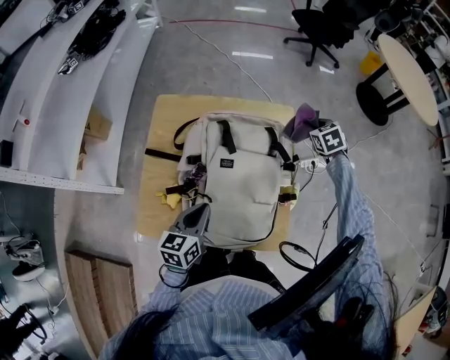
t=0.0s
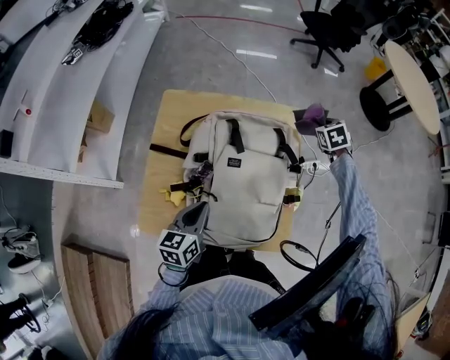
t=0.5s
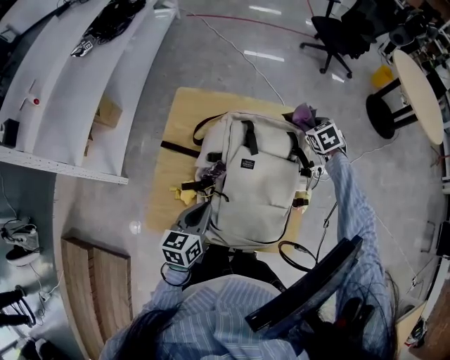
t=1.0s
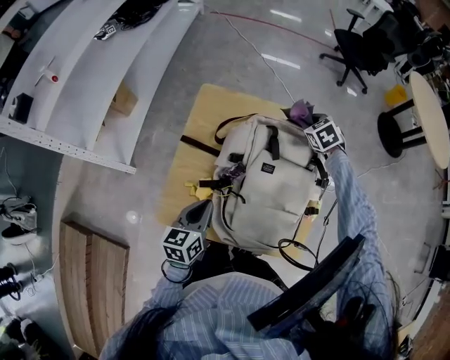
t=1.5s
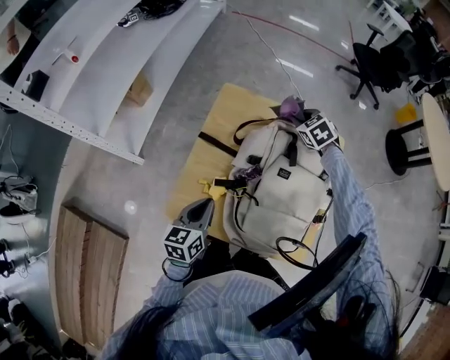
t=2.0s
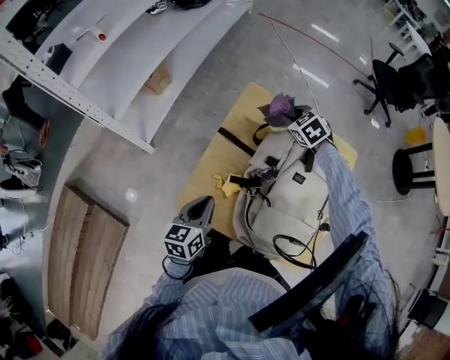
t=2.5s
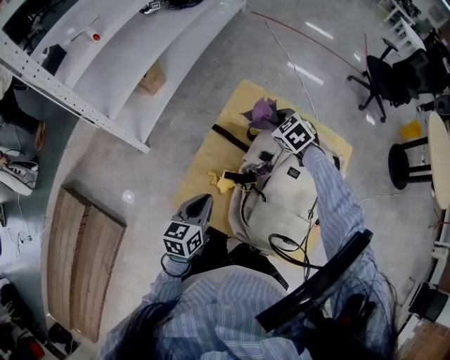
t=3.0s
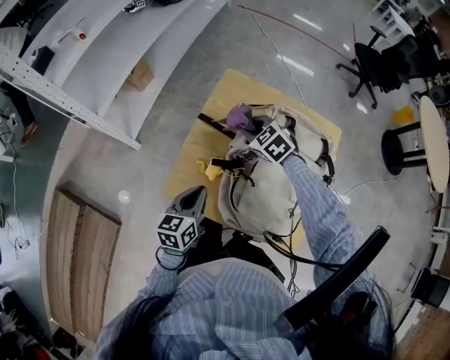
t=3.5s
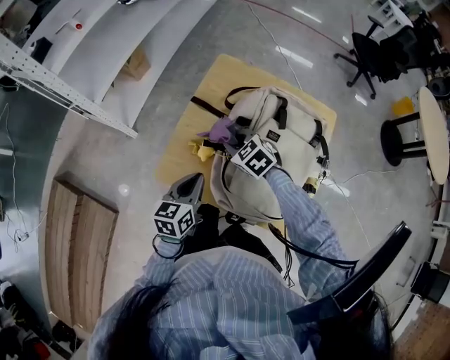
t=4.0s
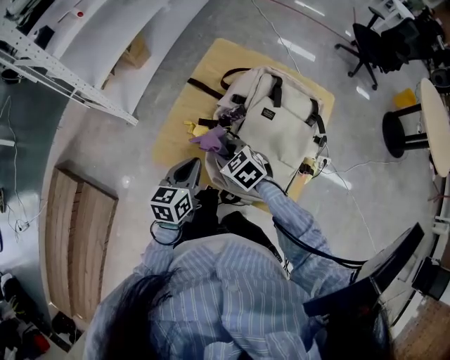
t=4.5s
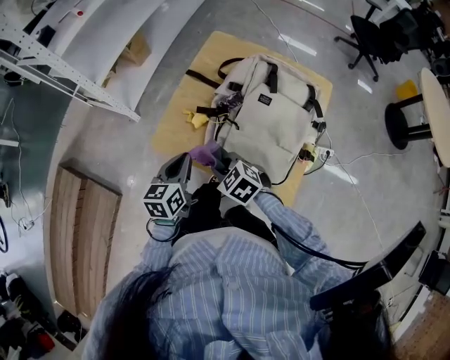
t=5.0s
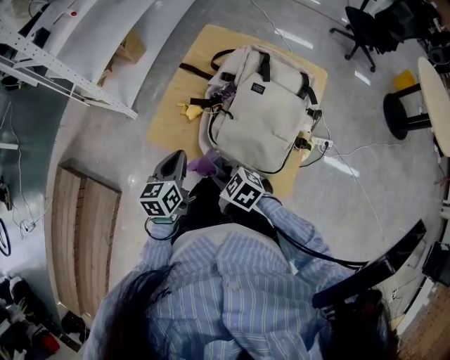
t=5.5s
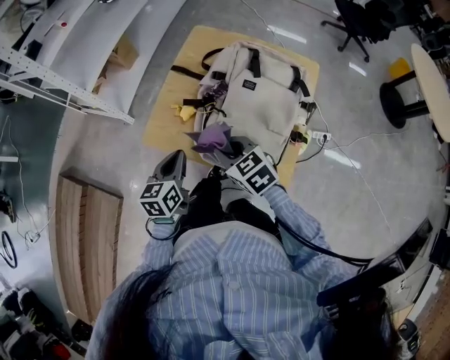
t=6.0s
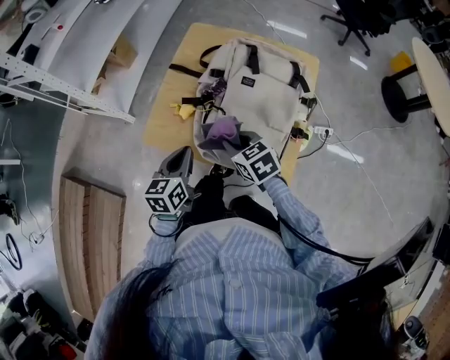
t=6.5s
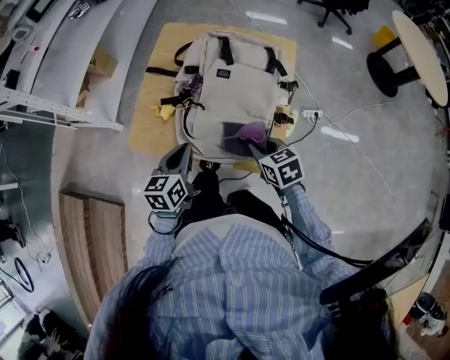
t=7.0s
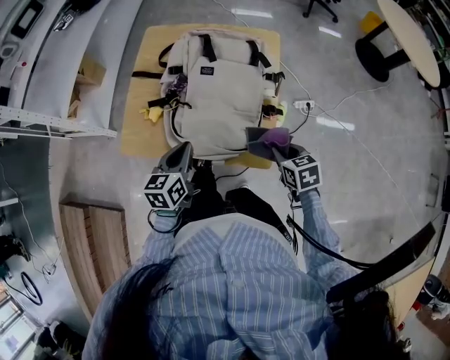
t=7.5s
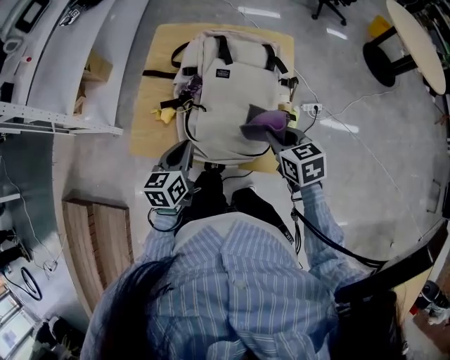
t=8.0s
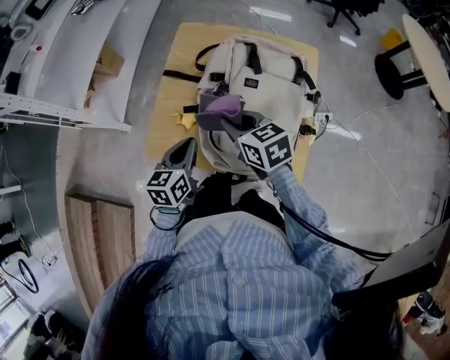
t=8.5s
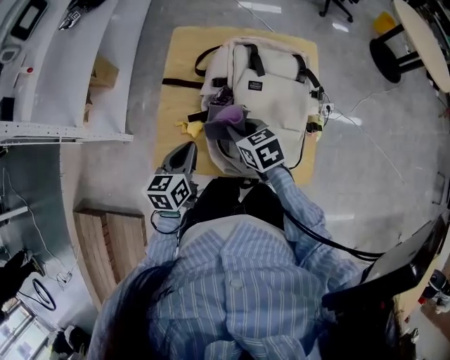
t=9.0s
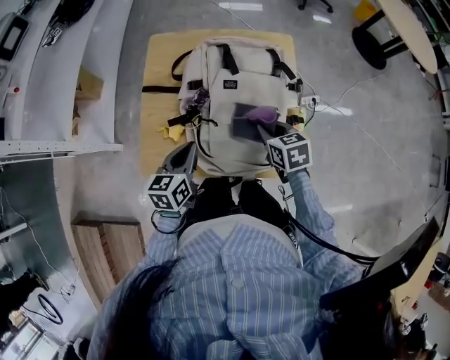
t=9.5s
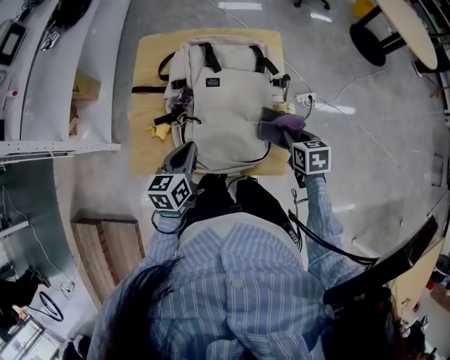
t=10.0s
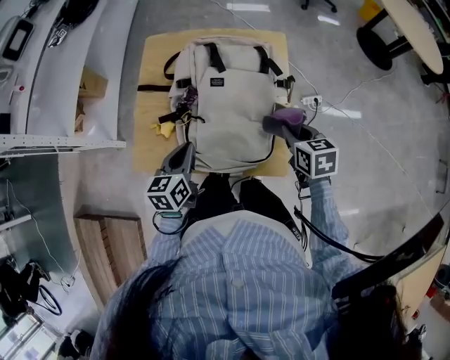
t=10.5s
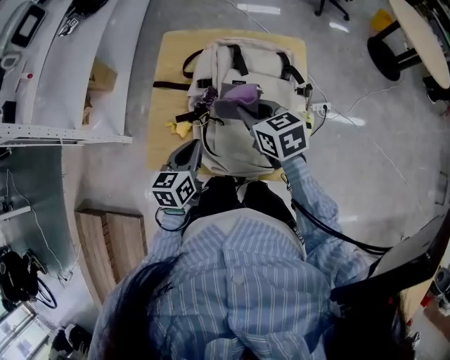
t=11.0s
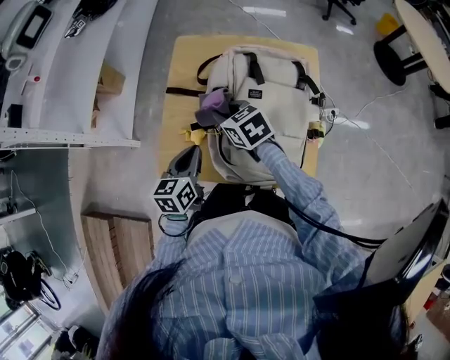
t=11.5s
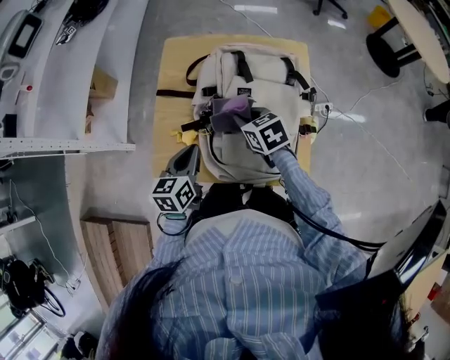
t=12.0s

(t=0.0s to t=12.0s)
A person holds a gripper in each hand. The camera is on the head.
t=0.0s - t=2.0s: The right gripper goes about 30 cm to the left, and rotates roughly 30 degrees. The left gripper travels to the left by about 15 cm.
t=2.0s - t=4.0s: The left gripper moves backward, roughly 5 cm. The right gripper moves backward and to the left, roughly 30 cm, and swivels roughly 20 degrees.
t=4.0s - t=6.0s: The right gripper shifts roughly 20 cm backward, while the left gripper travels backward by about 10 cm.
t=6.0s - t=8.0s: The right gripper travels to the right by roughly 20 cm, and changes its angle by roughly 30 degrees, while the left gripper moves to the right, some 10 cm.
t=8.0s - t=10.0s: The left gripper goes to the left and returns, approximately 10 cm each way, while the right gripper is displaced downward by approximately 5 cm, moves approximately 20 cm to the left and comes back, and turns by roughly 20 degrees.
t=10.0s - t=12.0s: The right gripper shifts about 25 cm to the left and forward, and turns by roughly 20 degrees, while the left gripper is displaced to the left by about 10 cm.

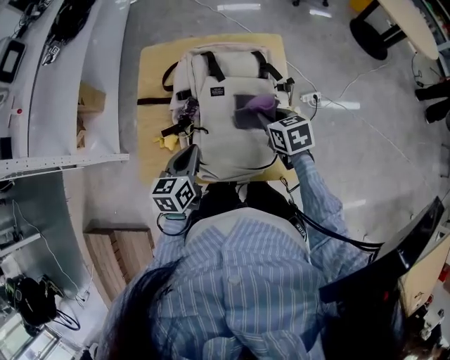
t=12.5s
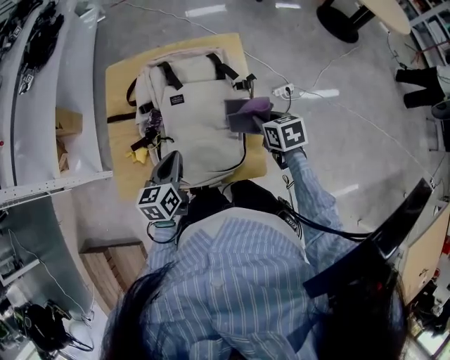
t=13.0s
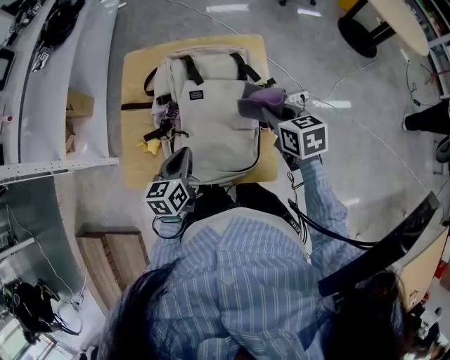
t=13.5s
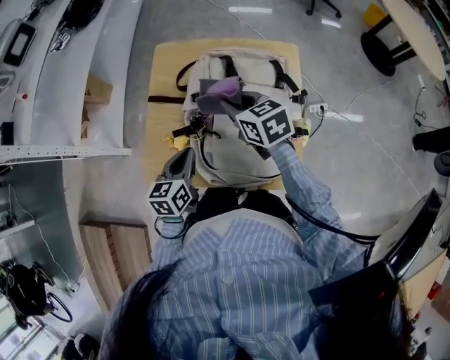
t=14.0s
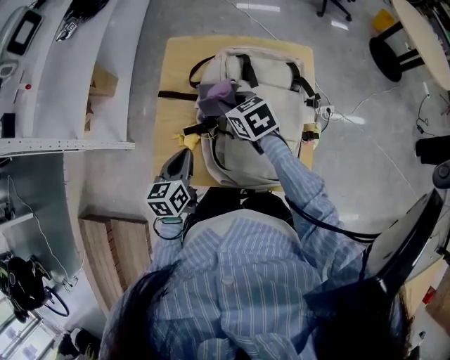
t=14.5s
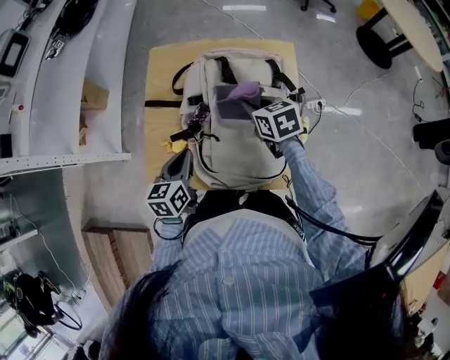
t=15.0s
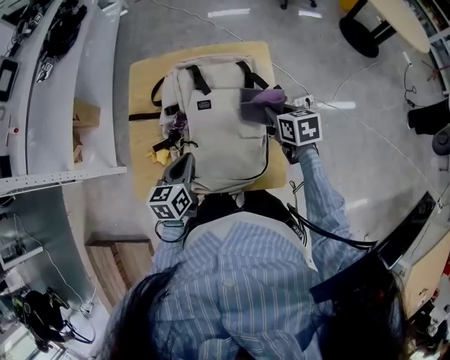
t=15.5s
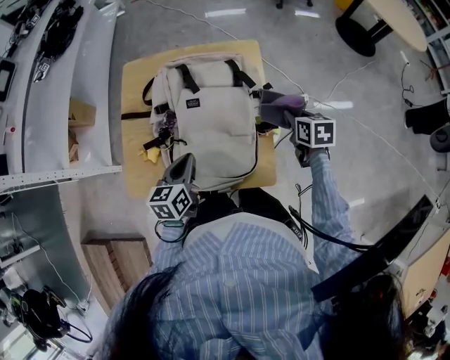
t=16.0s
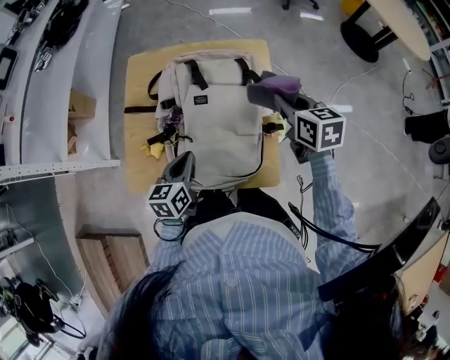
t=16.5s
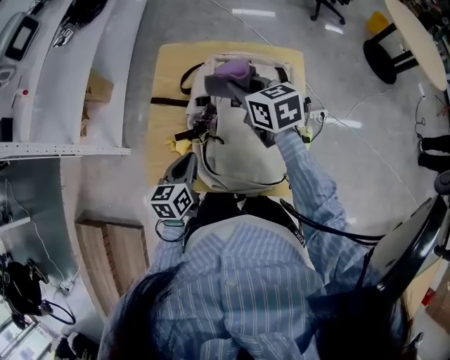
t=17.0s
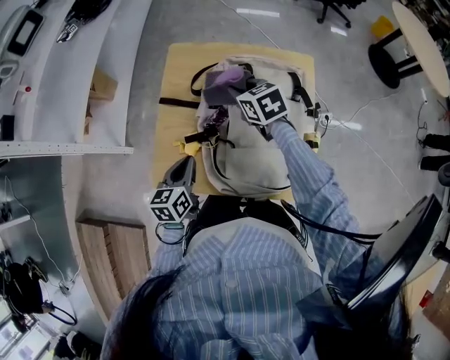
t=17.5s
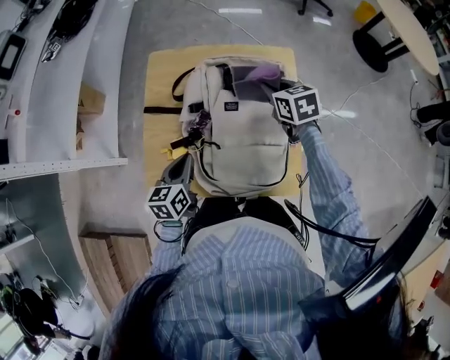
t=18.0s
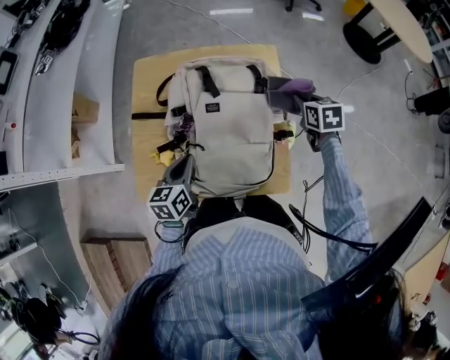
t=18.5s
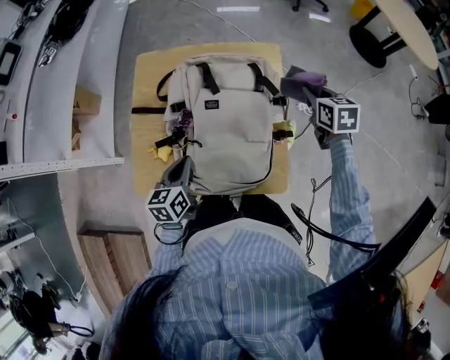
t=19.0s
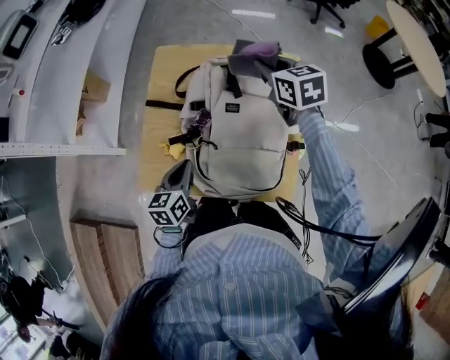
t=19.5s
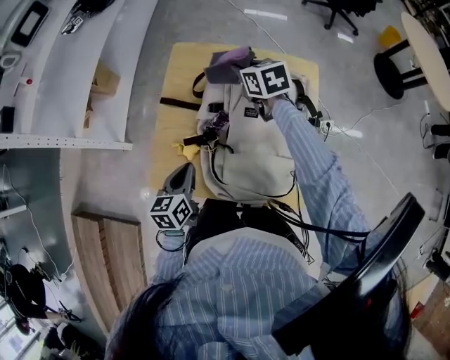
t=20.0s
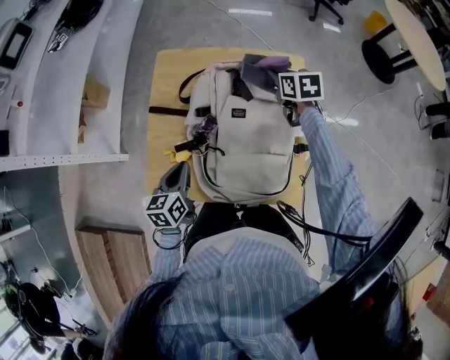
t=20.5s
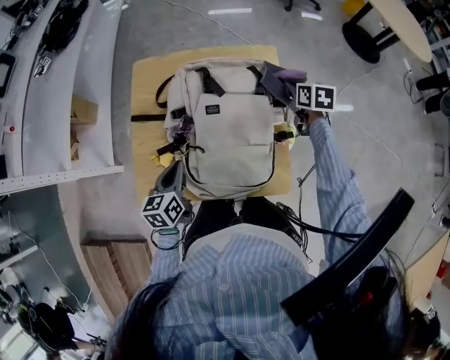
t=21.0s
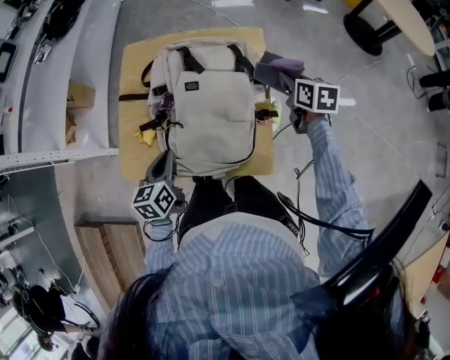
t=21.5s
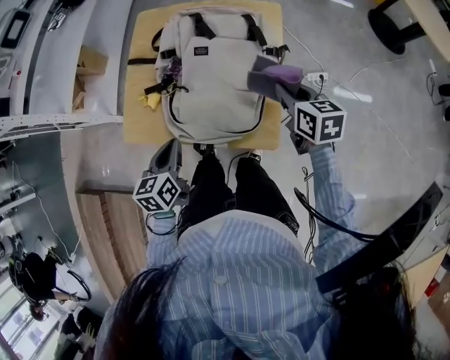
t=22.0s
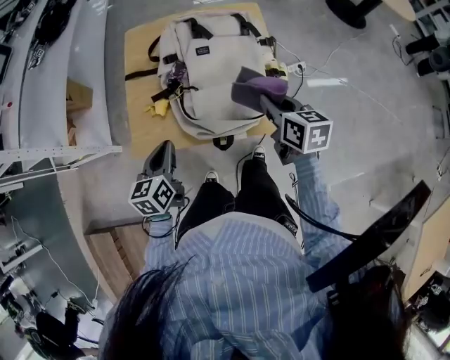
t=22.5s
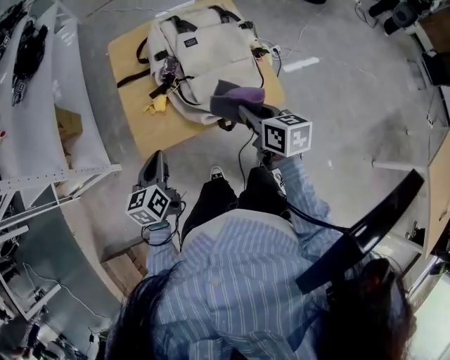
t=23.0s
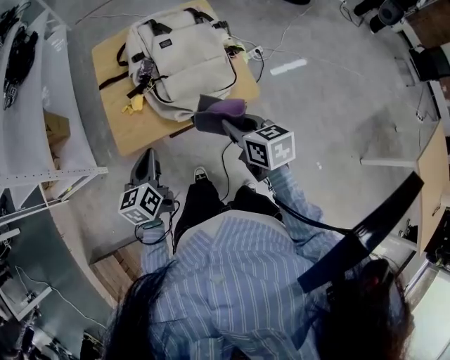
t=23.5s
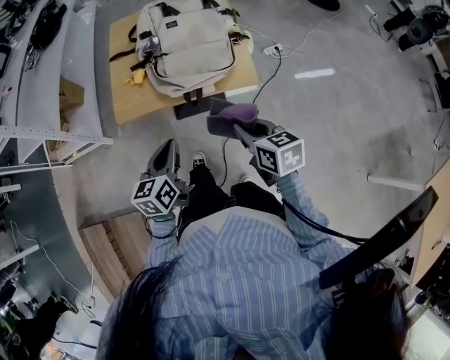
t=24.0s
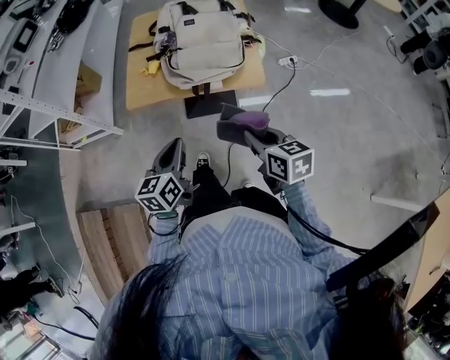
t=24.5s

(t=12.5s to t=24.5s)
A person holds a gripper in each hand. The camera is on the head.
t=12.5s - t=14.5s: The right gripper travels to the left and forward by roughly 20 cm. The left gripper is displaced to the left by about 10 cm.
t=14.5s - t=16.5s: The left gripper shifts about 15 cm to the right. Meanwhile the right gripper travels to the right by roughly 30 cm, and rotates approximately 30 degrees.
t=16.5s - t=18.5s: The left gripper moves about 15 cm to the left and comes back, while the right gripper shifts about 10 cm downward and forward, and reaches approximately 25 cm to the left, then returns.
t=18.5s - t=20.5s: The left gripper goes roughly 10 cm to the left, while the right gripper travels to the left and forward by about 20 cm.
t=20.5s - t=22.5s: The left gripper shifts approximately 15 cm backward; the right gripper moves backward, approximately 35 cm.
t=22.5s - t=24.5s: The two grippers go approximately 30 cm backward.

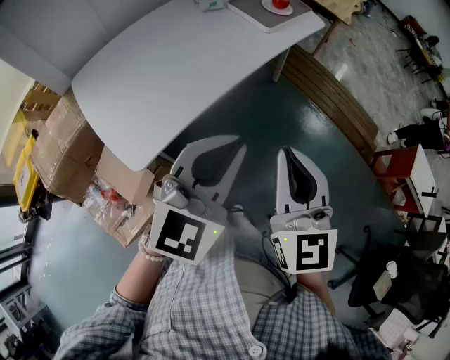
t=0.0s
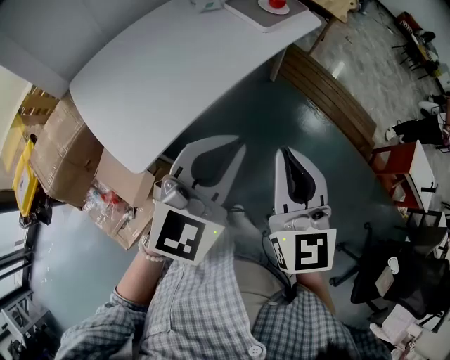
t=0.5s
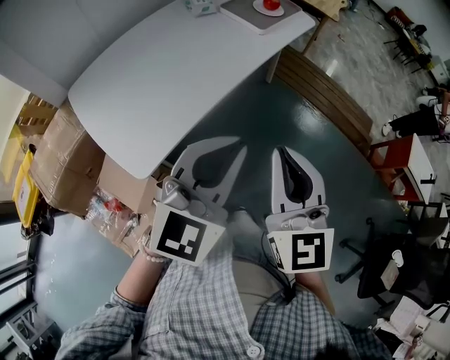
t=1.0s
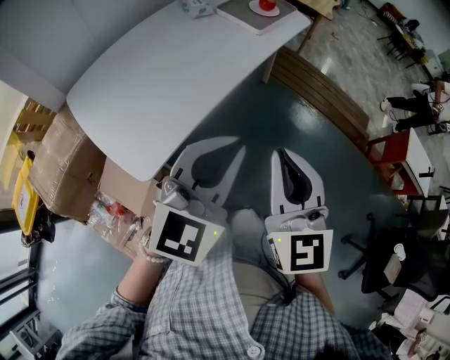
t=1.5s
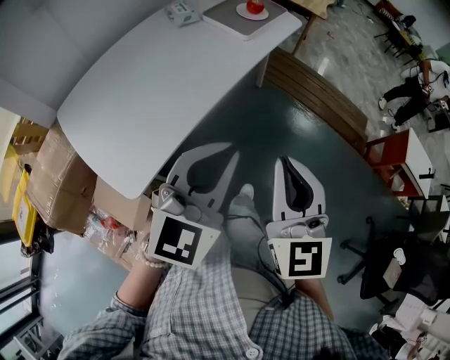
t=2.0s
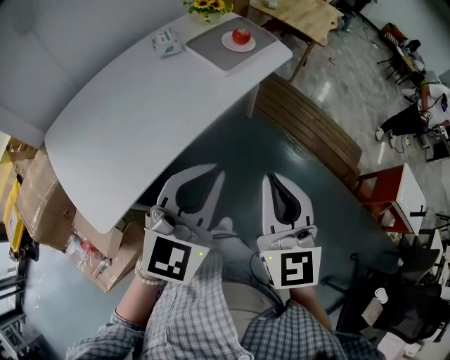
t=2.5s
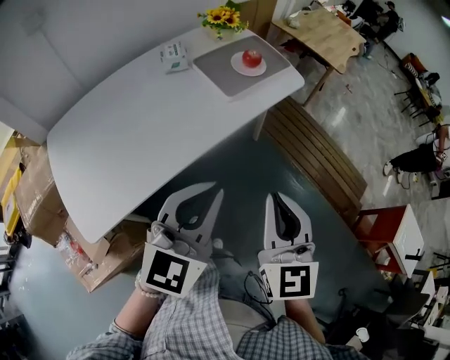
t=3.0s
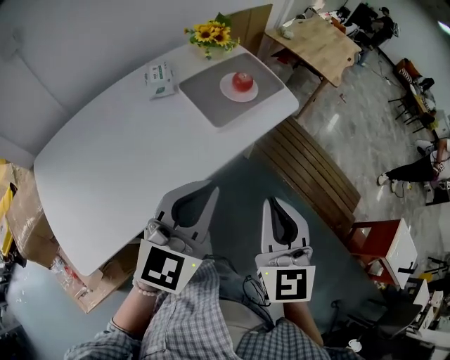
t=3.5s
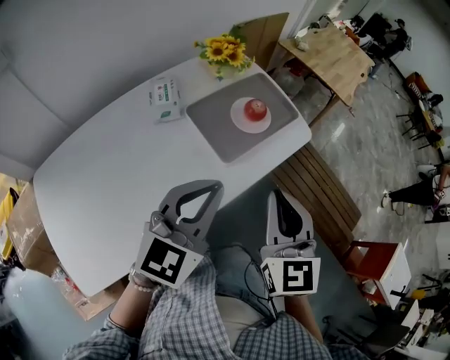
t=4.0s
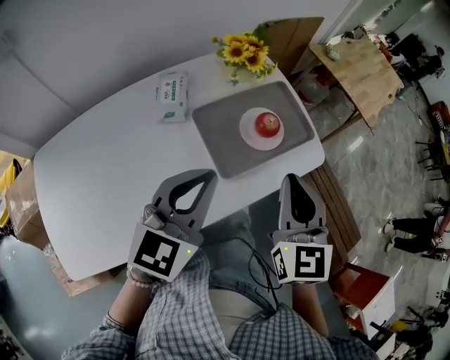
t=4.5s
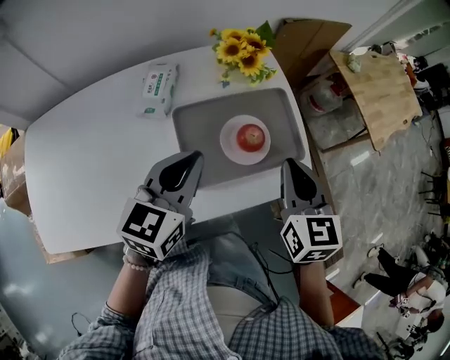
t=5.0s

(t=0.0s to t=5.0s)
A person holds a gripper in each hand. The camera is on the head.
t=0.0s - t=2.5s: The grippers both shift forward and to the right by some 15 cm.
t=2.5s - t=5.0s: The two grippers travel together, approximately 60 cm. The right gripper turns by roughly 30 degrees. The left gripper swivels roughly 50 degrees.
